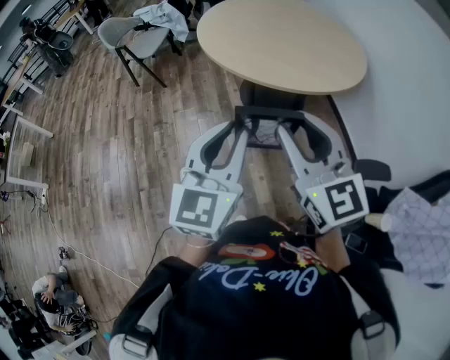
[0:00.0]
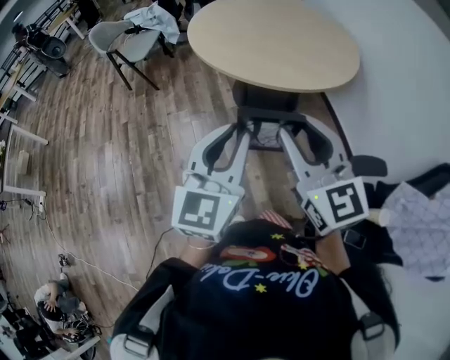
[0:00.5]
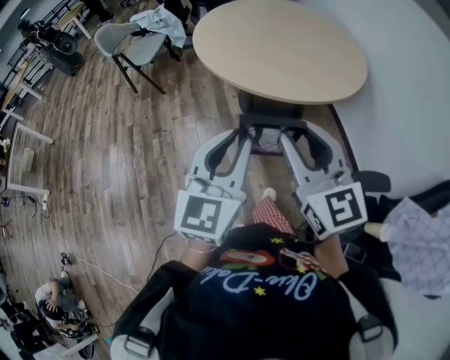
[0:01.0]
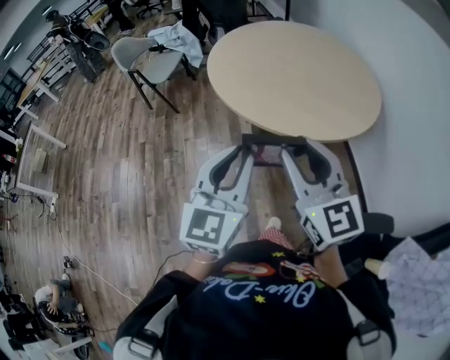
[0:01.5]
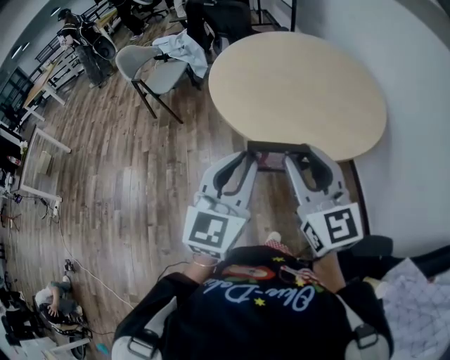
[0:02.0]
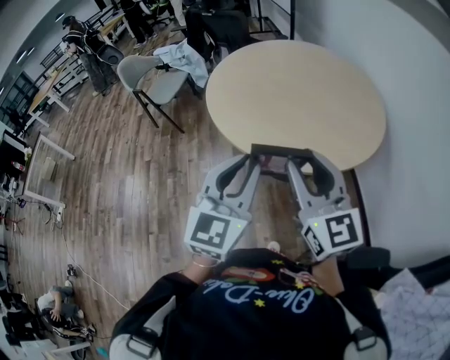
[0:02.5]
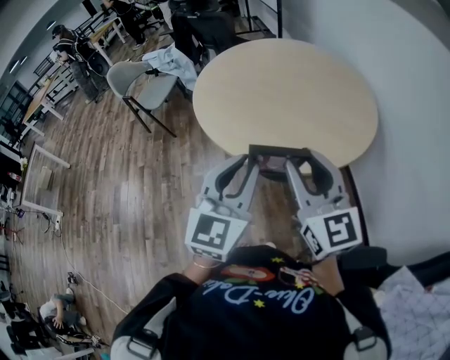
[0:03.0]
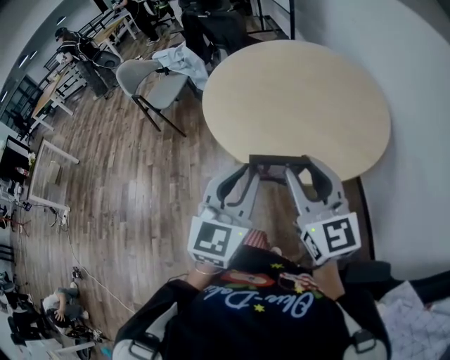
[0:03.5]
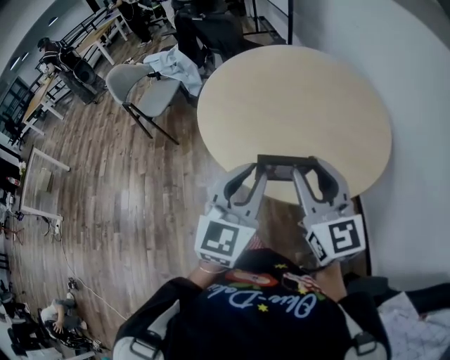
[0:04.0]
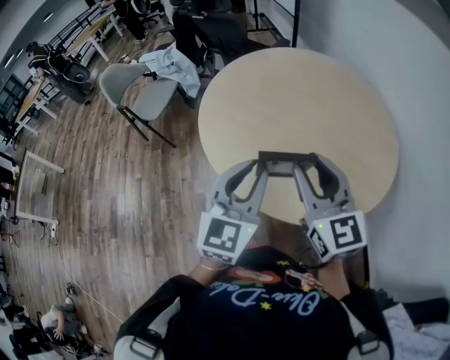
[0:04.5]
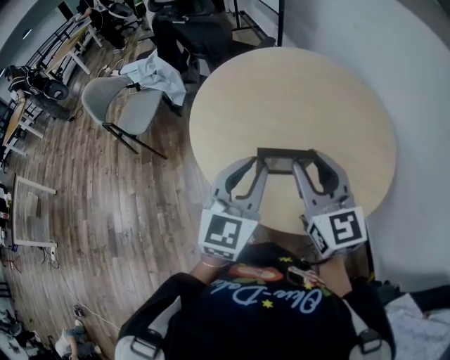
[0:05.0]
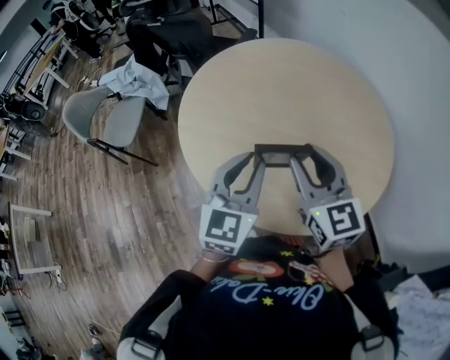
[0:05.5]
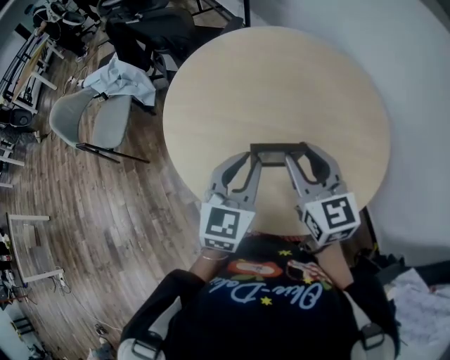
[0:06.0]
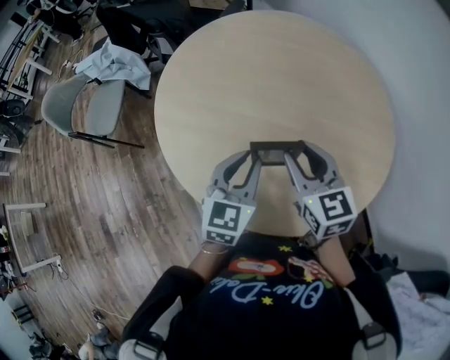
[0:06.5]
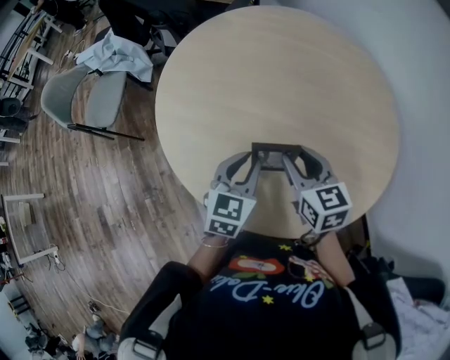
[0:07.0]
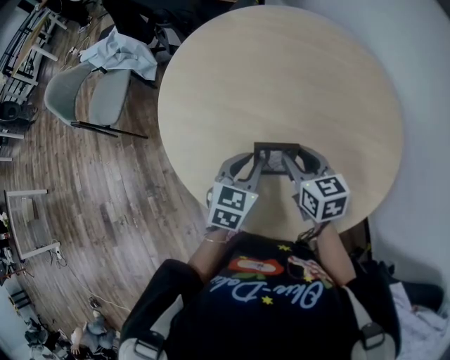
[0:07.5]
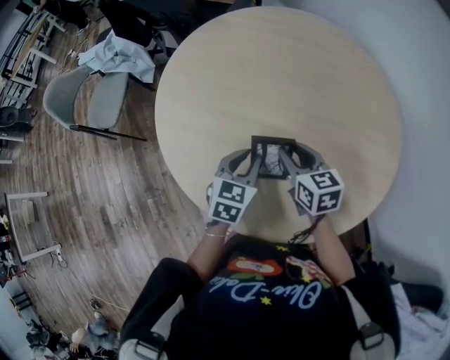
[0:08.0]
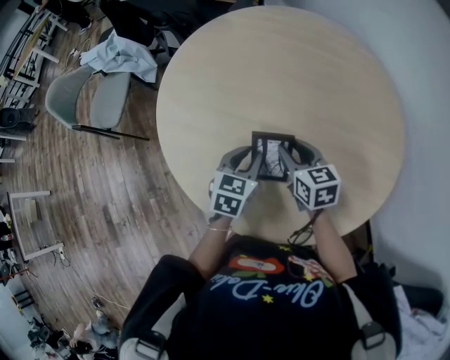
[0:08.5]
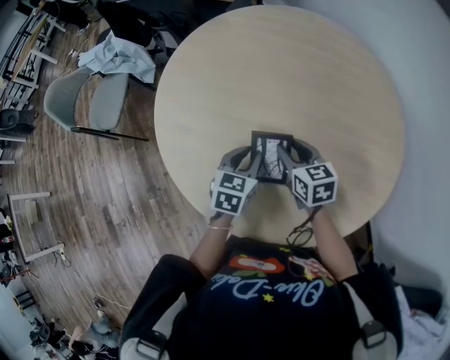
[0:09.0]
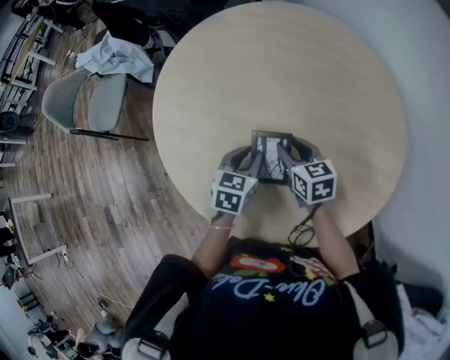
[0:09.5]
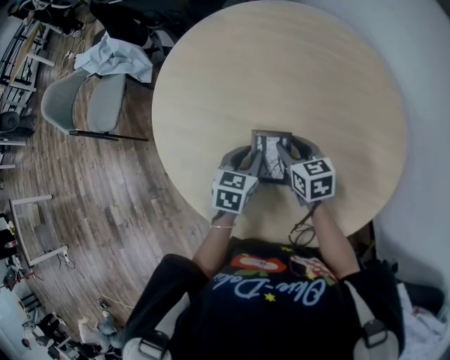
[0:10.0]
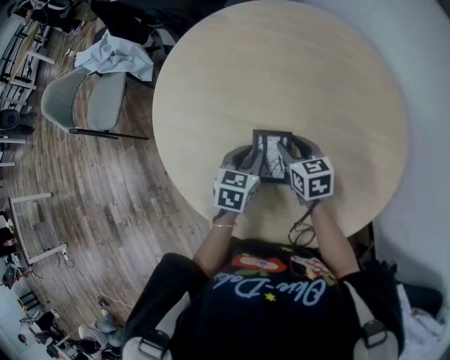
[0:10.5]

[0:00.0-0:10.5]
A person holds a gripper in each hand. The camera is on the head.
0.0 to 2.0 s: Both grippers travel together forward, about 15 cm.
2.0 to 4.0 s: Both grippers move forward, some 15 cm.
4.0 to 6.5 s: The grippers both shift forward and downward by approximately 25 cm. The right gripper changes its angle by approximately 20 degrees. Meanwhile the left gripper swivels approximately 20 degrees.
6.5 to 8.5 s: Both grippers travel together downward and forward, some 15 cm.
8.5 to 10.5 s: The right gripper moves roughly 5 cm.

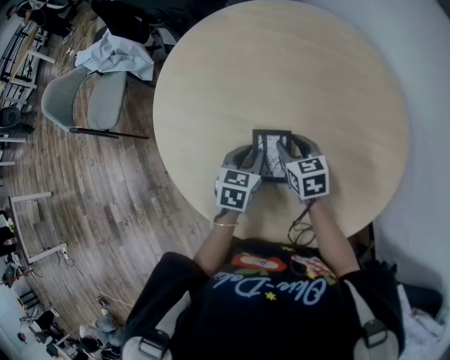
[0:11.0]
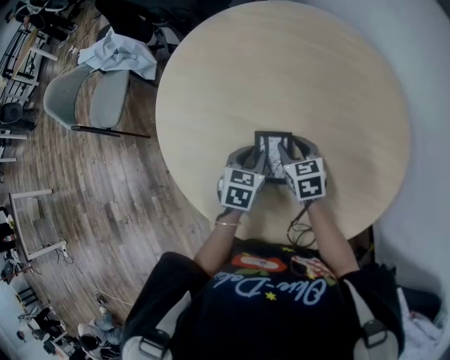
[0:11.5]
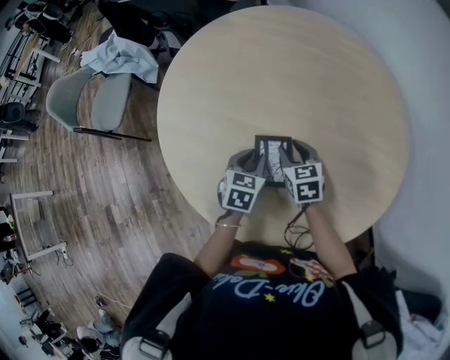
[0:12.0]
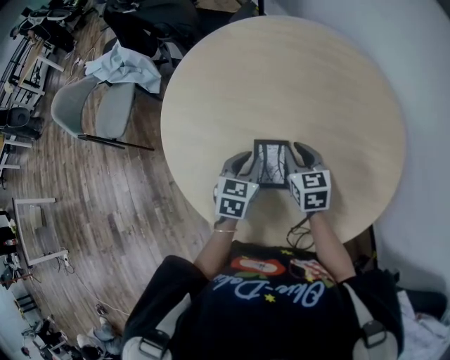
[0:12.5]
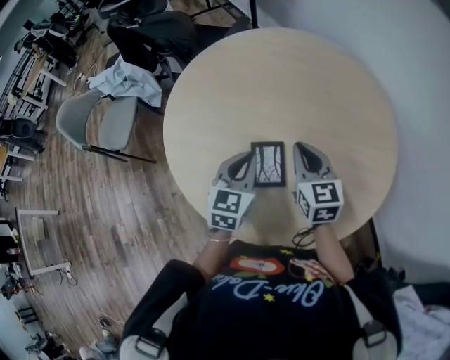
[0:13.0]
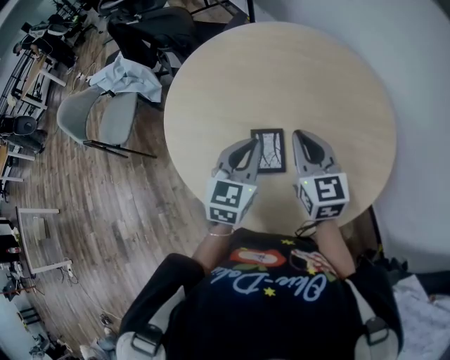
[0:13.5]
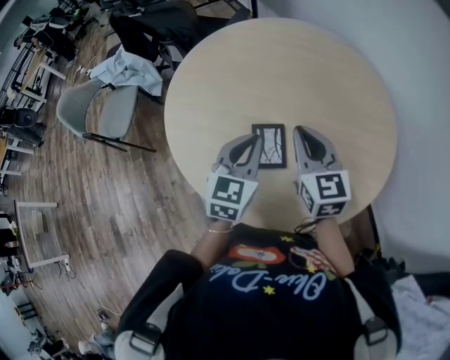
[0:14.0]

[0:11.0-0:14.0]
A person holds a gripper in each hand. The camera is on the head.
11.0 to 12.5 s: There are only small adjustments of the grippers.
12.5 to 14.0 s: The grippers both shift upward by roughly 15 cm. The right gripper turns by approximately 20 degrees, and closes. Meanwhile the left gripper rotates roughly 20 degrees.

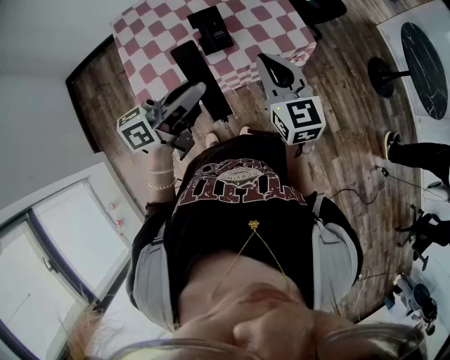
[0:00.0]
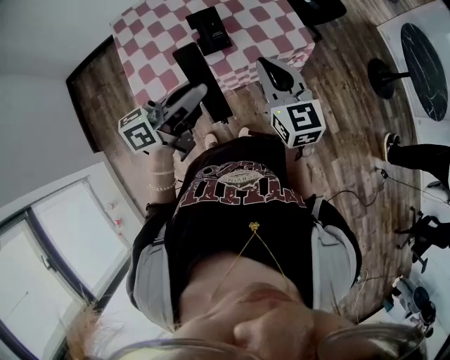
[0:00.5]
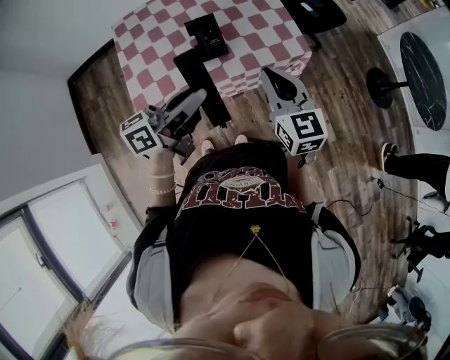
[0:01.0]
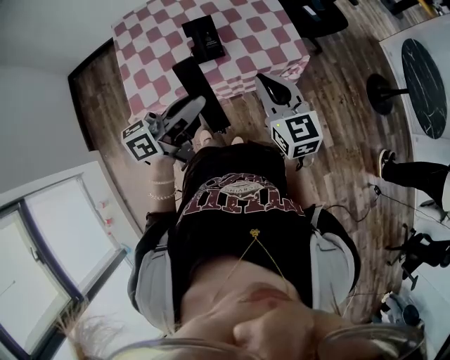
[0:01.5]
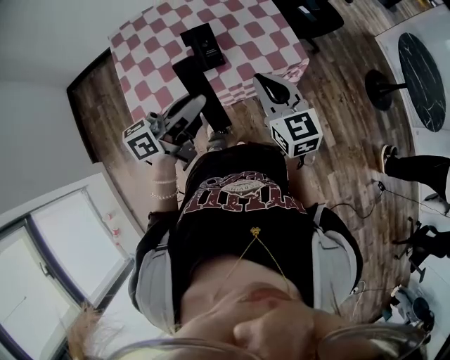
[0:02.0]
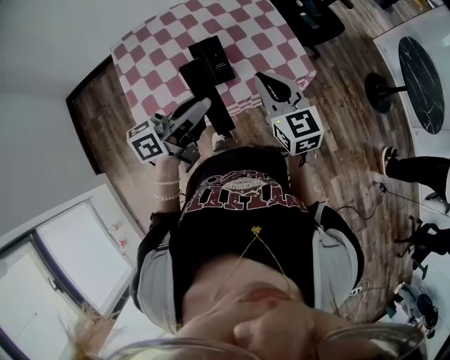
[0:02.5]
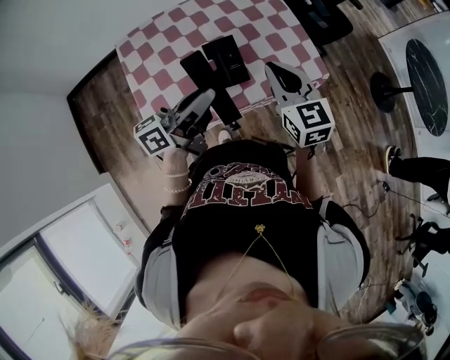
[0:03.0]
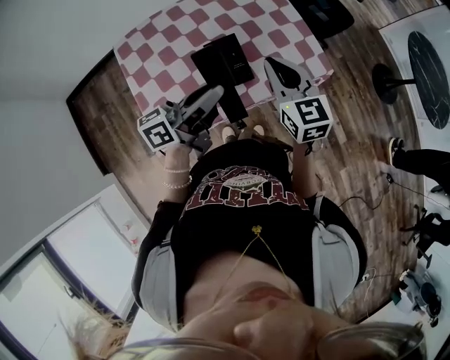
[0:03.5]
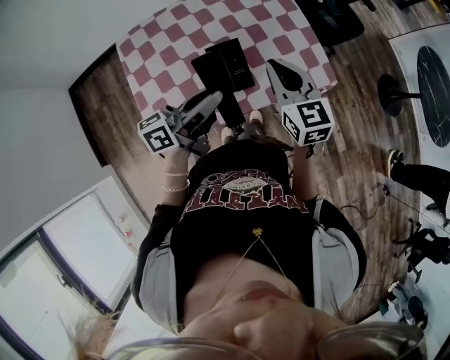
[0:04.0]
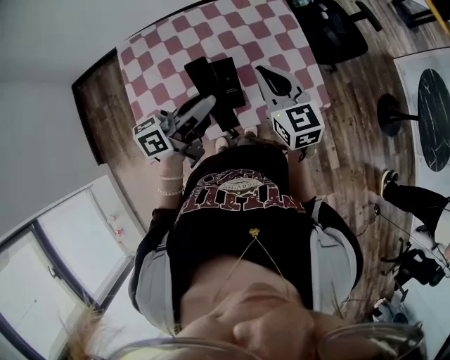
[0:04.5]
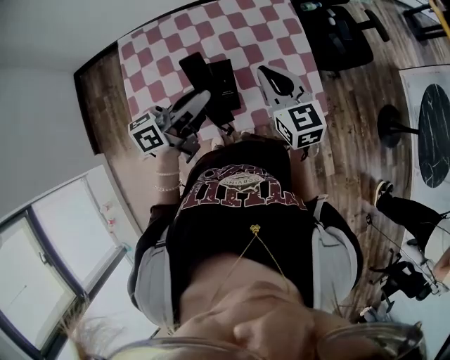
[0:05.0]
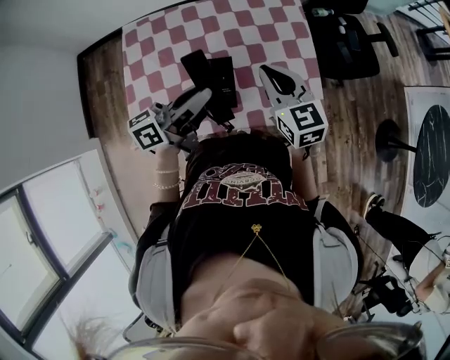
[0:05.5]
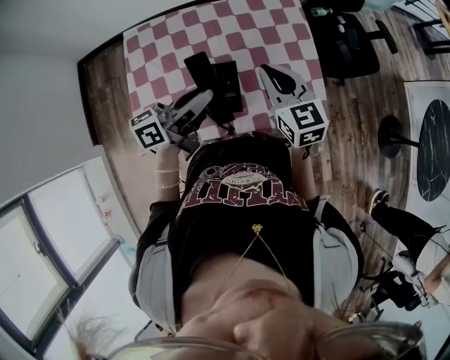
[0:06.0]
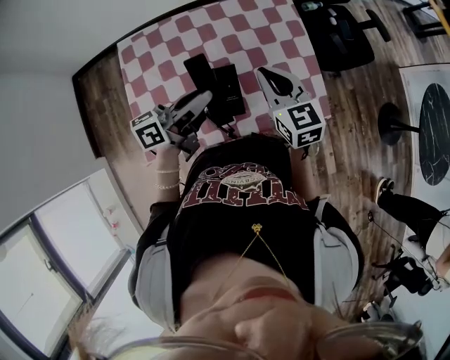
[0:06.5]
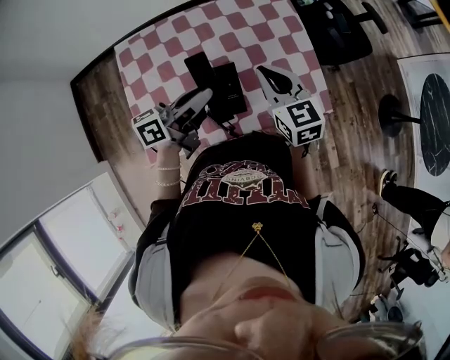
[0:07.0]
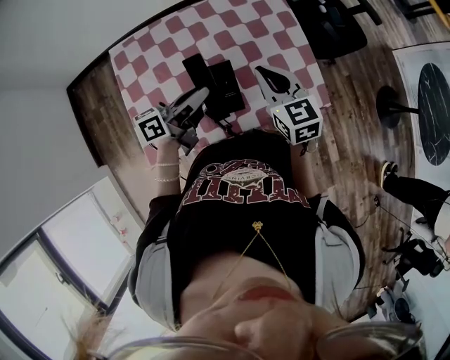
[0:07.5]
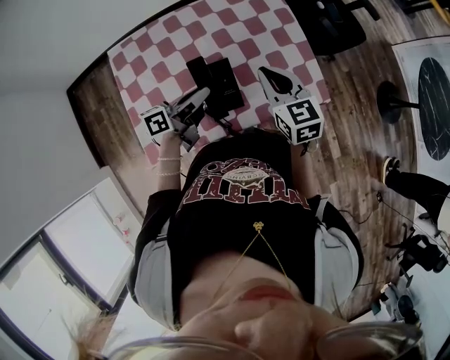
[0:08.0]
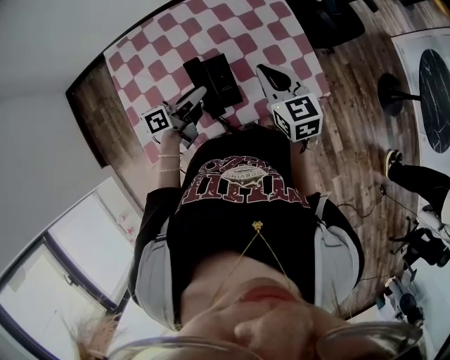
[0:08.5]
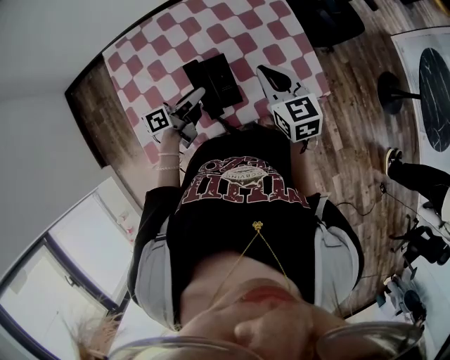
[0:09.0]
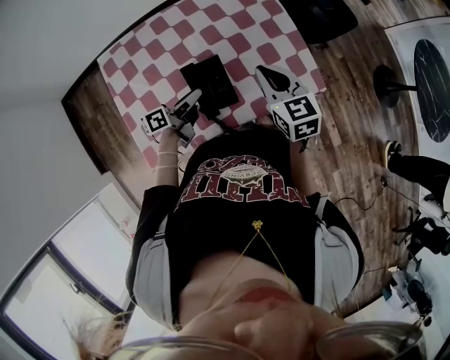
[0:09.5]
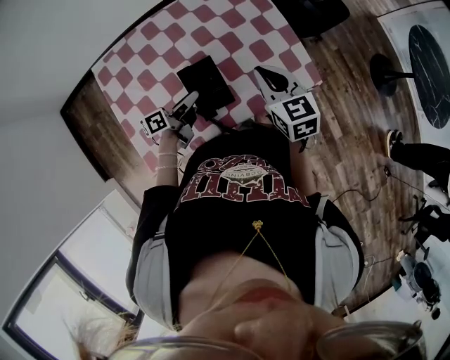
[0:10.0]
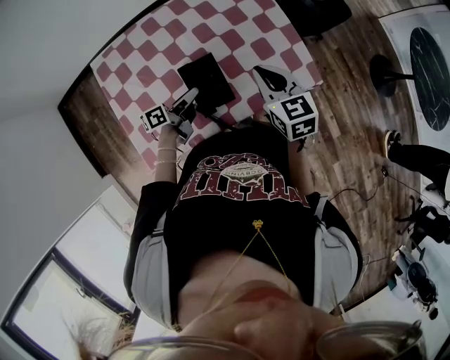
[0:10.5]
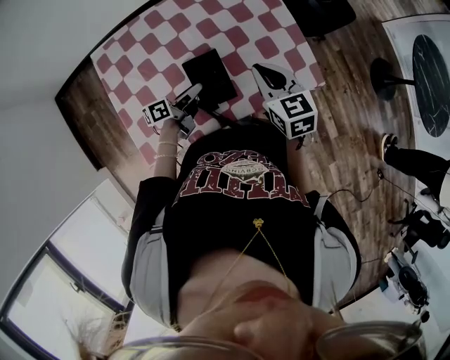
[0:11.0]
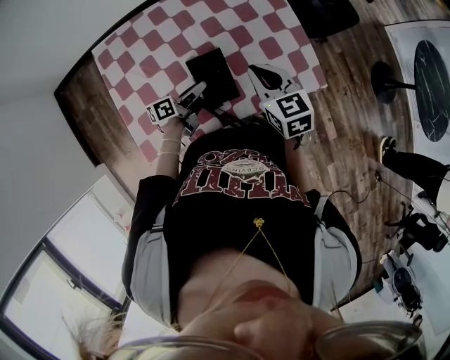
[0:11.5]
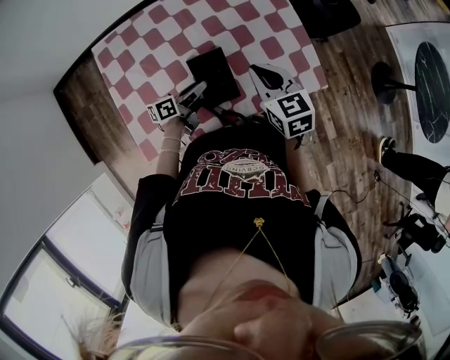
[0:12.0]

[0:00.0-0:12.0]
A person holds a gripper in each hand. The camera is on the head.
0.0 to 2.0 s: There are only small adjustments of the grippers.
2.0 to 4.0 s: The two grippers go approximately 15 cm forward and to the left.
4.0 to 6.0 s: The two grippers go some 10 cm forward.
6.0 to 8.0 s: The left gripper is displaced downward by some 10 cm.
8.0 to 10.0 s: The left gripper goes about 10 cm downward.
10.0 to 12.0 s: The right gripper shifts by approximately 5 cm.

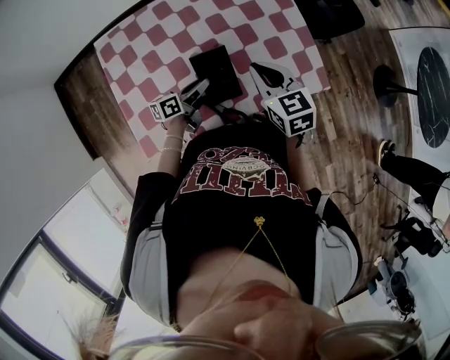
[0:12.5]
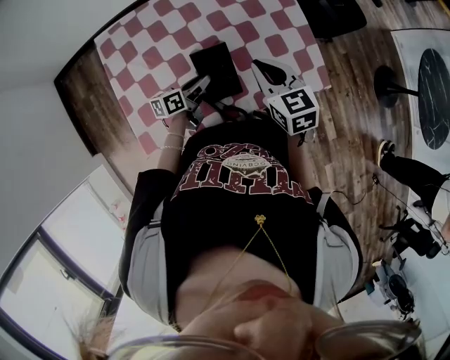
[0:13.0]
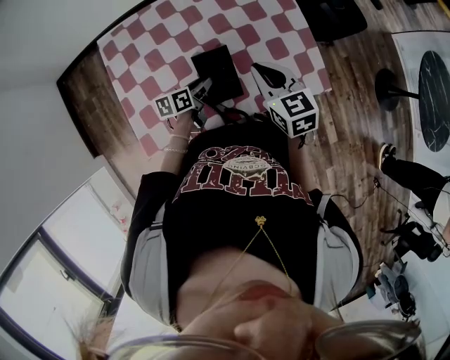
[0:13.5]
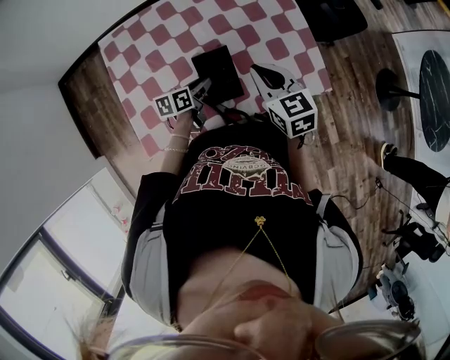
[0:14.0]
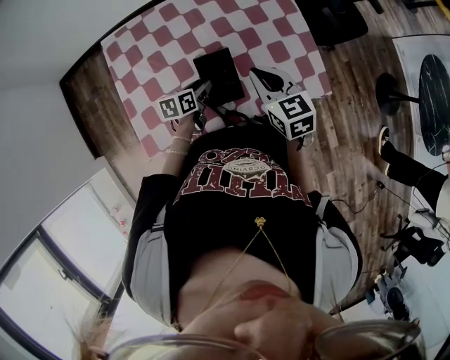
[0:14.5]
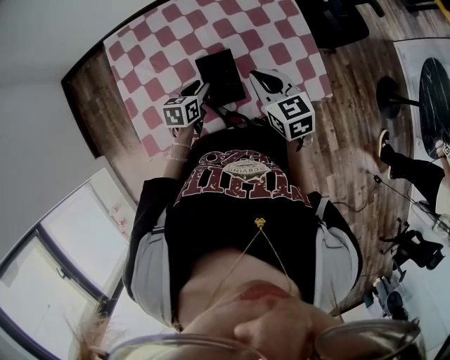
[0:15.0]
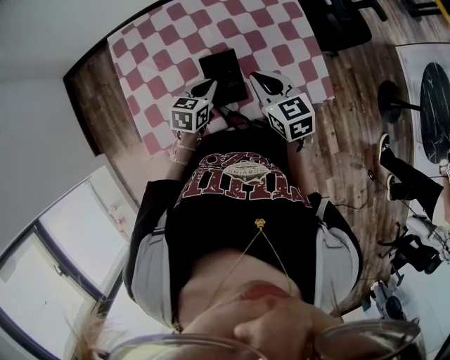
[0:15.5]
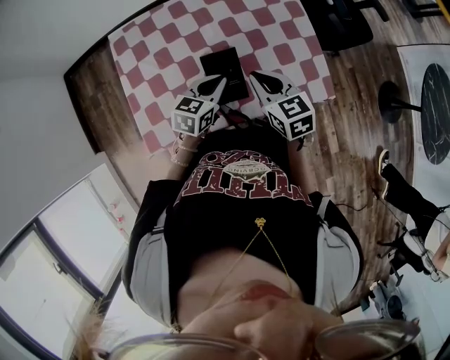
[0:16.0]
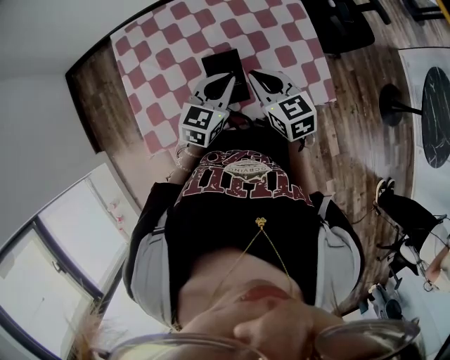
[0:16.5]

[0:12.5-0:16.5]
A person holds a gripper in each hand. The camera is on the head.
12.5 to 14.5 s: The left gripper swivels about 30 degrees.
14.5 to 16.5 s: The left gripper travels upward and to the right by about 15 cm, turns by about 40 degrees, and closes its fingers.
